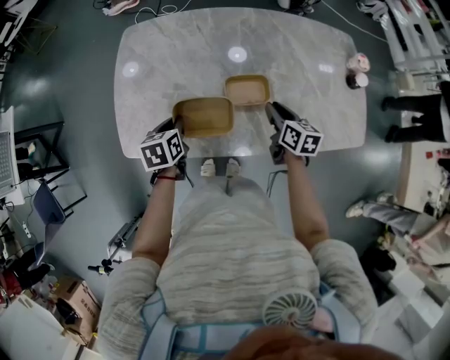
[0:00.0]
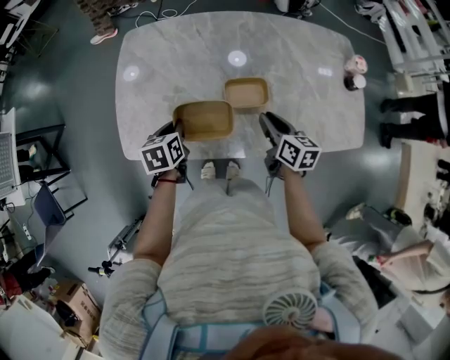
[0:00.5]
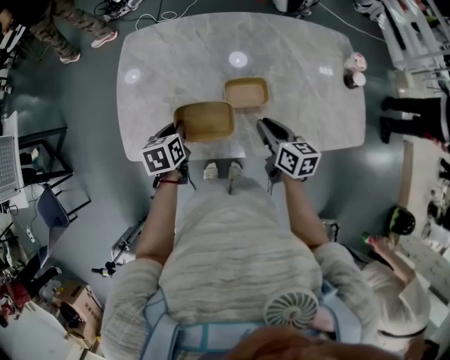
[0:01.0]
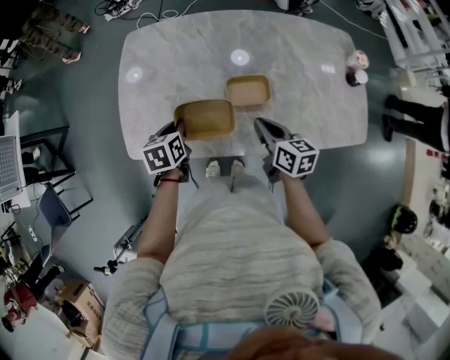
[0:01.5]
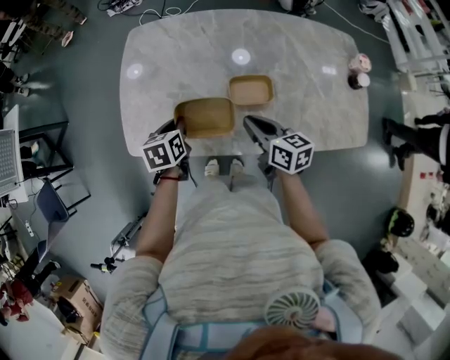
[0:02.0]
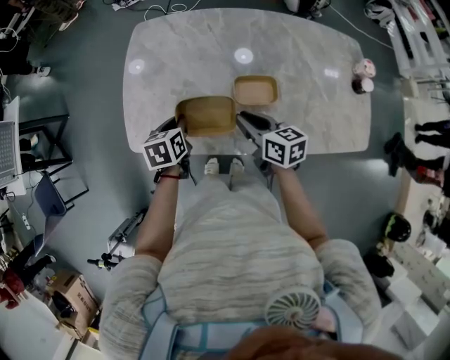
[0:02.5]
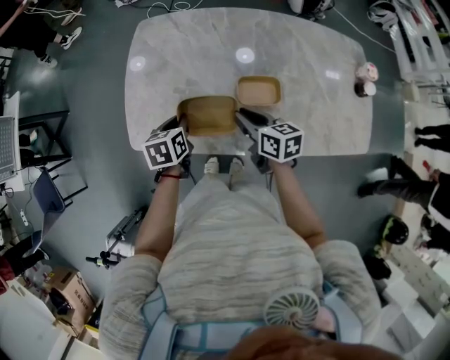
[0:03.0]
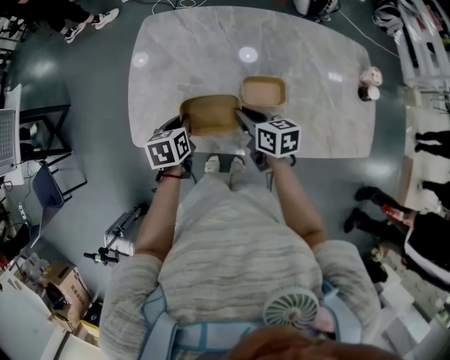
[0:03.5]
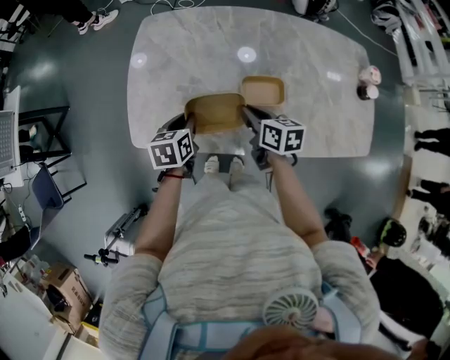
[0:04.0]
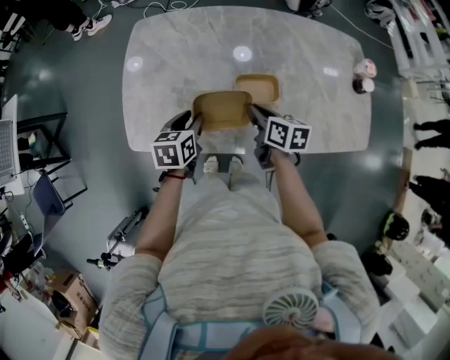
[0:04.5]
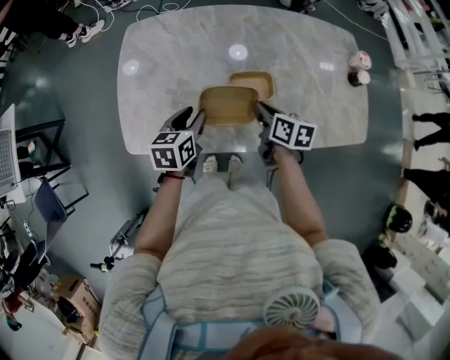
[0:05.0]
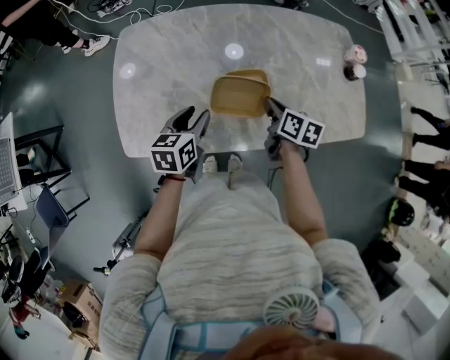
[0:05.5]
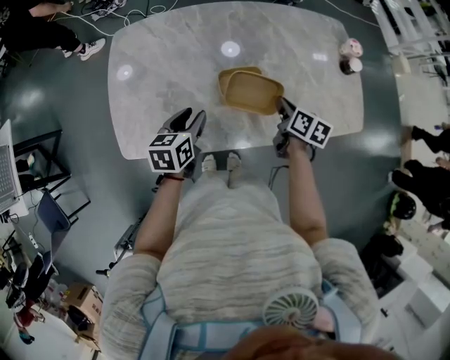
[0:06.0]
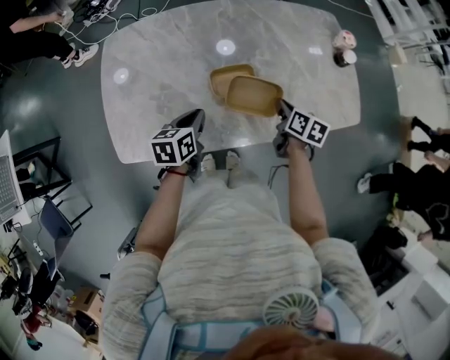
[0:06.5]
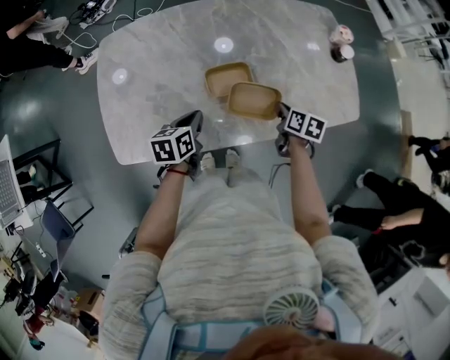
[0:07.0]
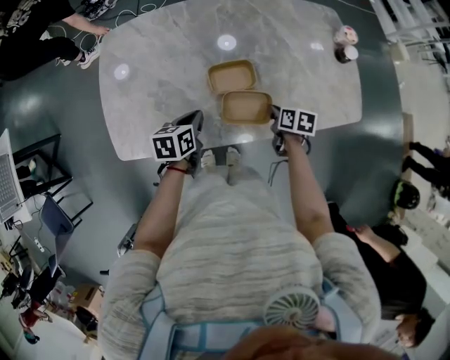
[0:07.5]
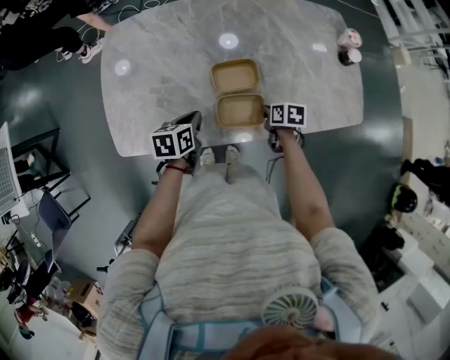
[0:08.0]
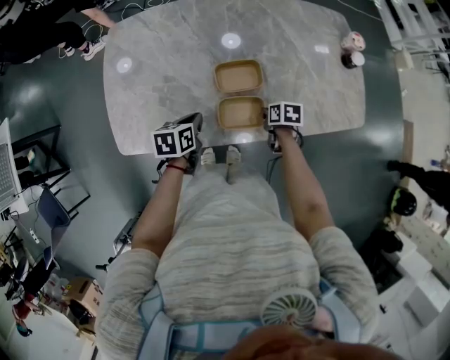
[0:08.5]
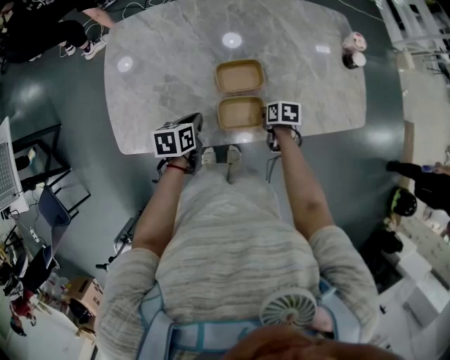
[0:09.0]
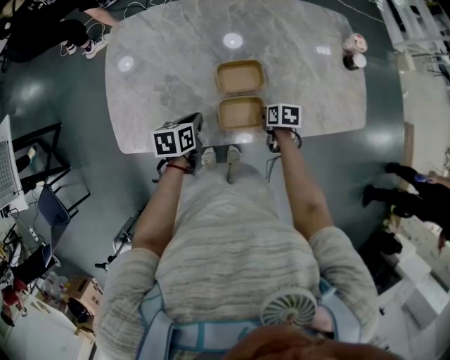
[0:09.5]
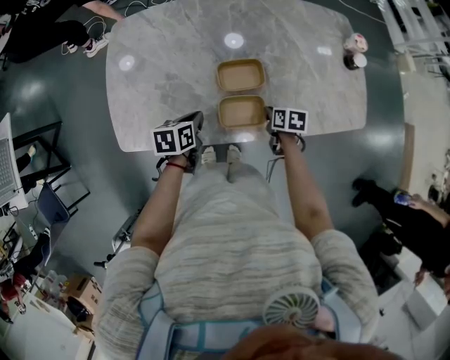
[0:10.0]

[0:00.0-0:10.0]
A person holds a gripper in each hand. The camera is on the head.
0.0 to 2.0 s: The right gripper moves to the left and upward, roughly 10 cm, and swivels approximately 20 degrees.
2.0 to 4.0 s: The right gripper changes place by some 5 cm.
4.0 to 6.0 s: The left gripper travels to the right by roughly 10 cm, and opens its fingers. The right gripper is displaced to the right by some 20 cm, and changes its angle by approximately 30 degrees.
6.0 to 8.0 s: The right gripper goes approximately 15 cm downward, and turns by some 30 degrees. The left gripper goes roughly 5 cm downward, and closes.
8.0 to 10.0 s: The grippers make only small movements.

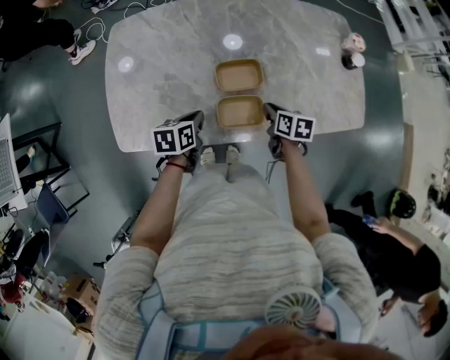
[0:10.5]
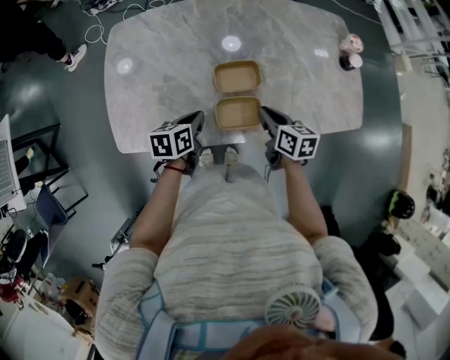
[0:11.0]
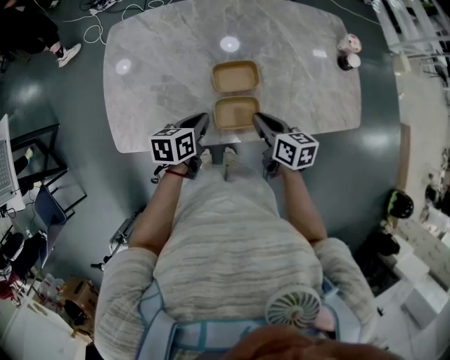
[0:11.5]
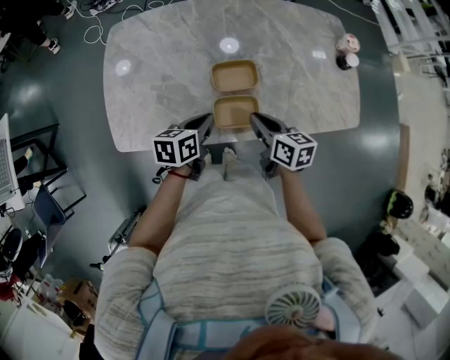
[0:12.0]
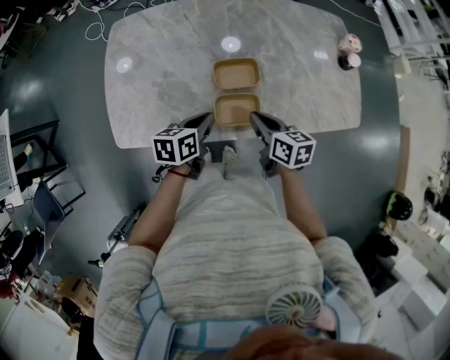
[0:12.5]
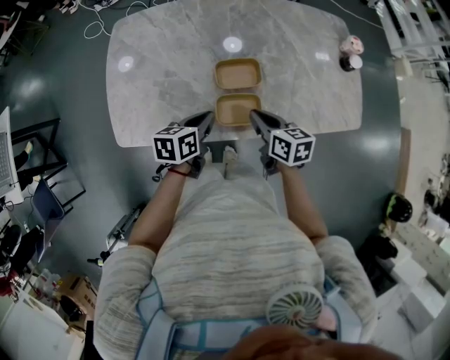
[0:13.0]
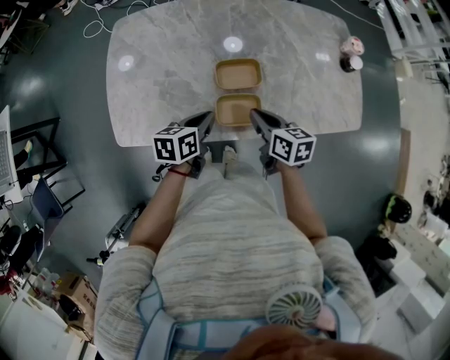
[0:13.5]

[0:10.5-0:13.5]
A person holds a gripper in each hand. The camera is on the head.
10.5 to 12.0 s: The left gripper heads upward, covering about 5 cm. Meanwhile the right gripper travels upward by approximately 10 cm.
12.0 to 13.5 s: Both grippers stay put.

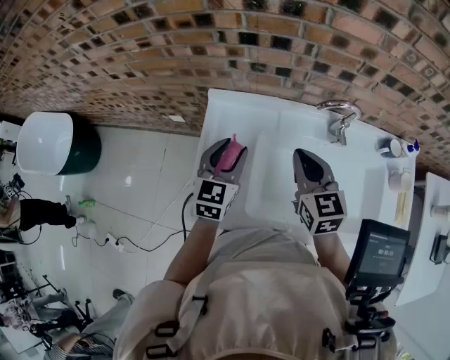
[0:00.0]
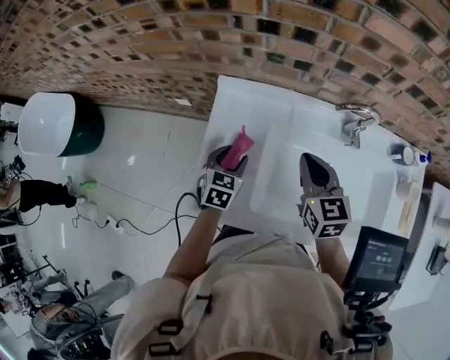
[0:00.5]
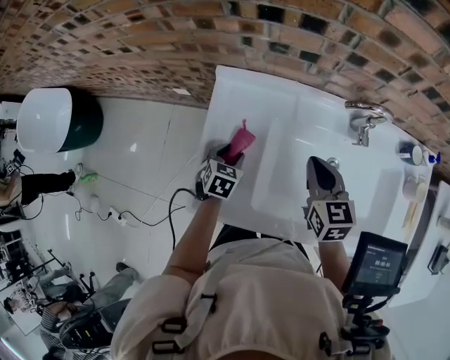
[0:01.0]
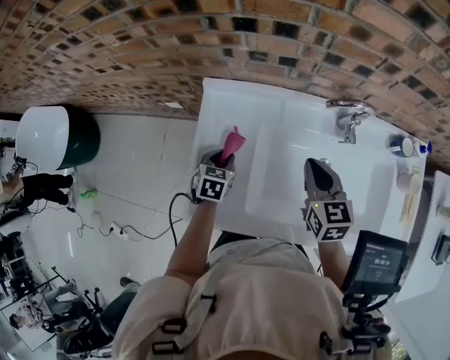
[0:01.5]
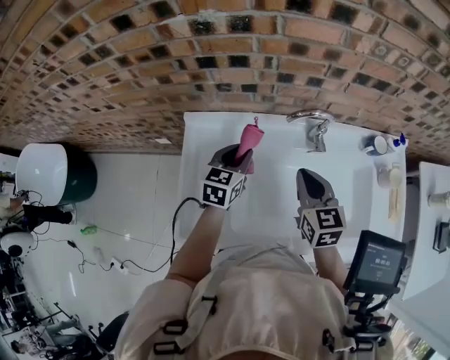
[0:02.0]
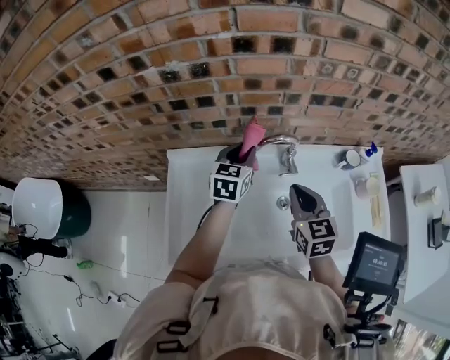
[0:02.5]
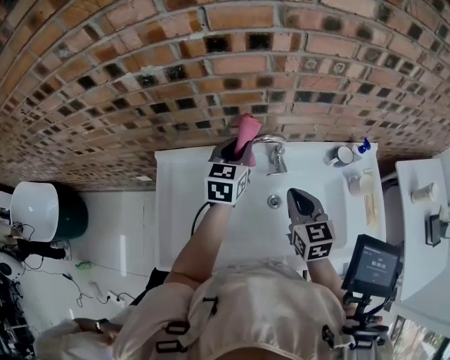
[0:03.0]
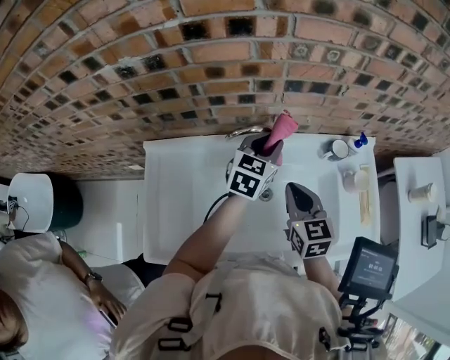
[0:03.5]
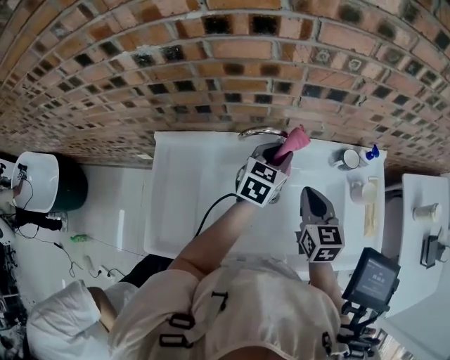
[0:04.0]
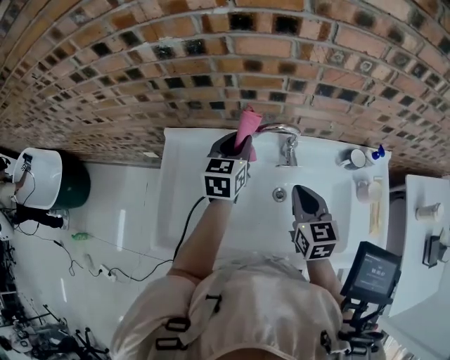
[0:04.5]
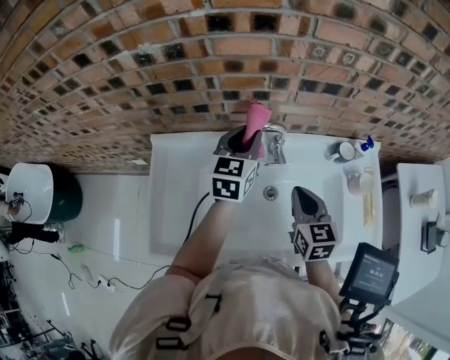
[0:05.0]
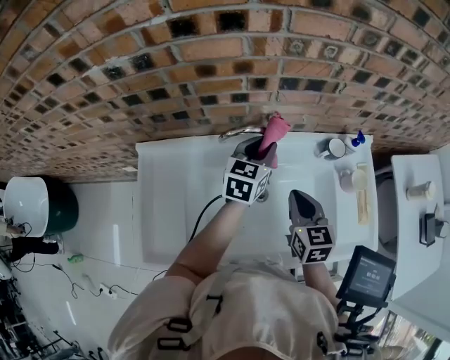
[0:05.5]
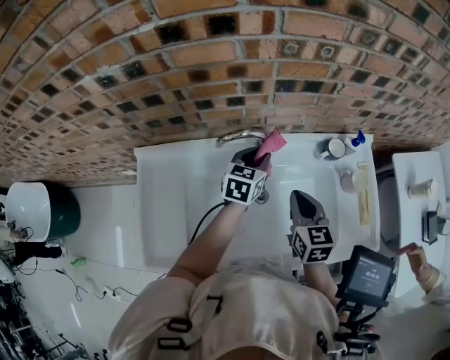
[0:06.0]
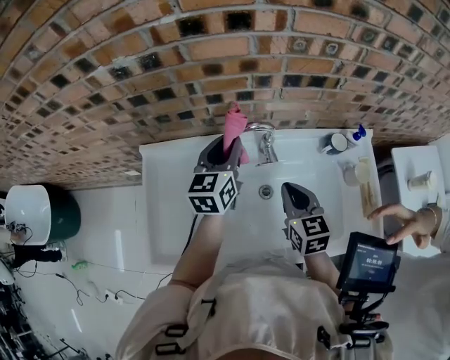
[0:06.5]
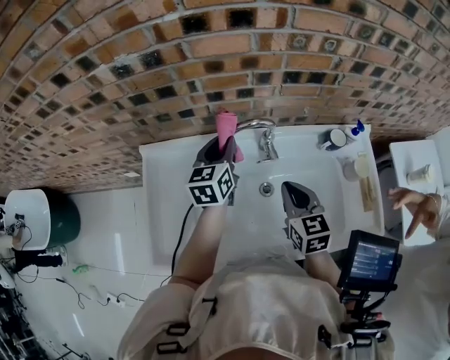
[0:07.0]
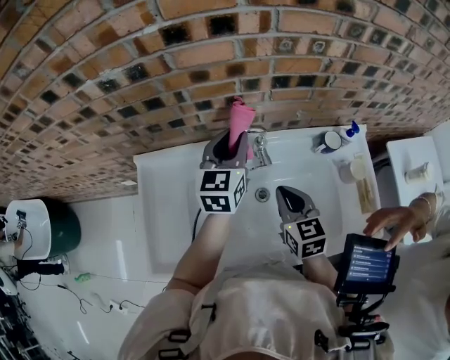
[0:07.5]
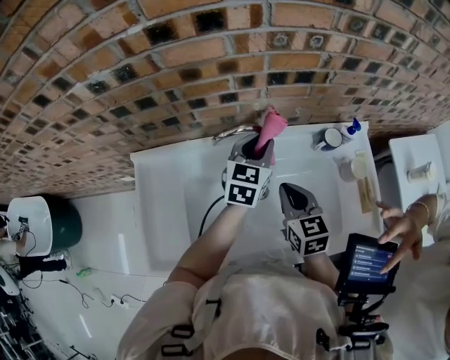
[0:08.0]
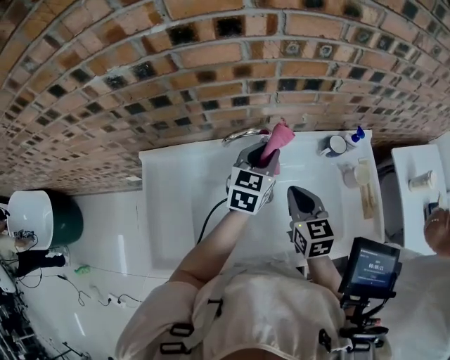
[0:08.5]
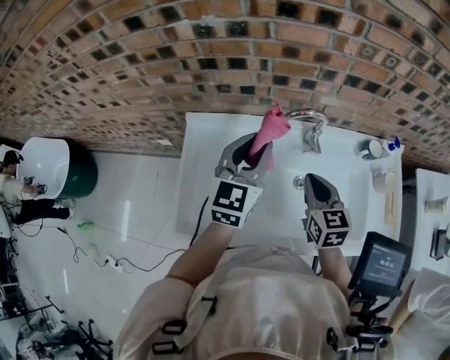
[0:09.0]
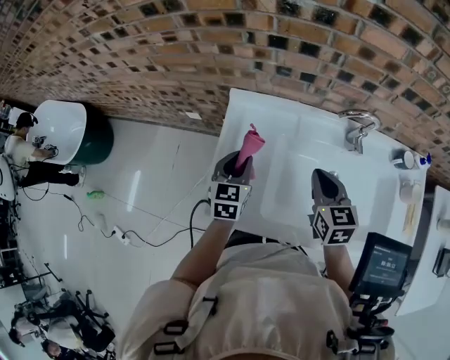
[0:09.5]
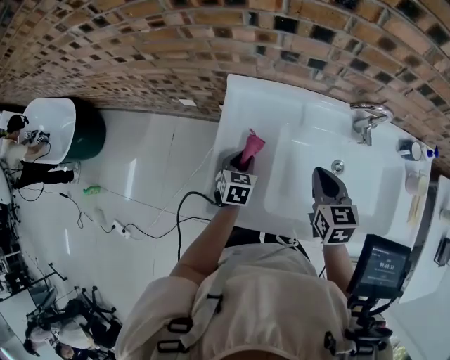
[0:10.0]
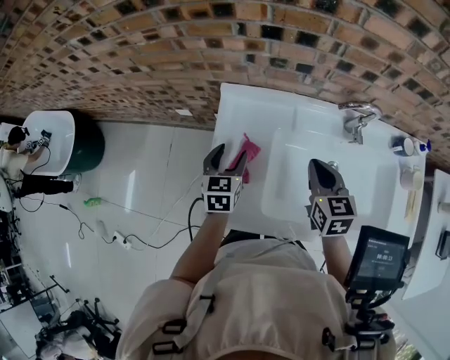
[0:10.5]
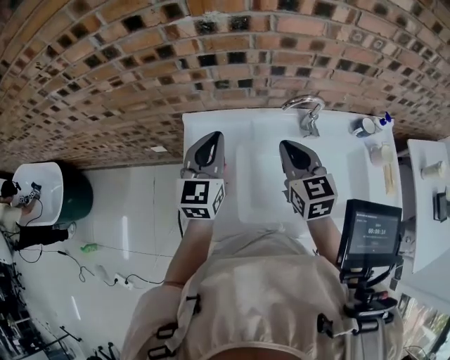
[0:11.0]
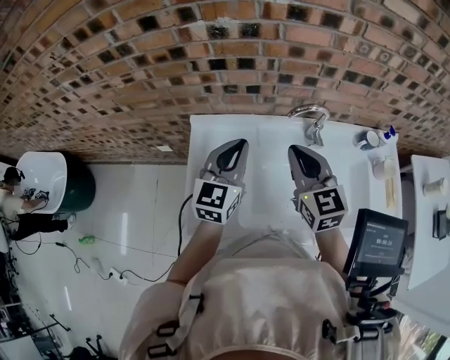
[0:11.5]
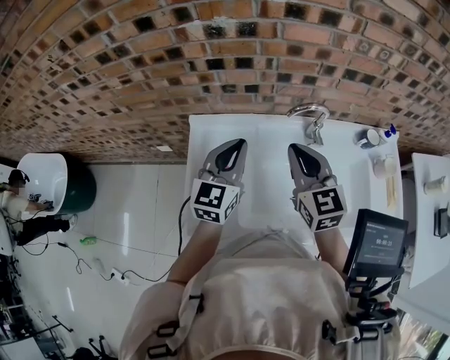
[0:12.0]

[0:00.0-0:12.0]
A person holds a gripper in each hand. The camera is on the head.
0.0 to 2.0 s: The right gripper goes approximately 10 cm to the right. Meanwhile the left gripper travels to the right and forward by roughly 10 cm, and travels downward and back again, some 20 cm each way.
2.0 to 4.0 s: The right gripper is displaced to the right by approximately 15 cm, while the left gripper is displaced to the right by roughly 25 cm.
4.0 to 6.0 s: The left gripper travels downward by some 5 cm, and reaches about 15 cm to the left, then returns.
6.0 to 8.0 s: The left gripper shifts roughly 5 cm upward, and reaches roughly 15 cm to the left, then returns.
8.0 to 10.0 s: The right gripper goes some 25 cm to the left. The left gripper travels to the left, downward and backward by about 50 cm, and rotates some 40 degrees.
10.0 to 12.0 s: The right gripper goes roughly 15 cm upward, and swivels roughly 30 degrees. Meanwhile the left gripper heads upward and to the right, covering approximately 30 cm, angles its fingers upward, by some 40 degrees, and closes its fingers.

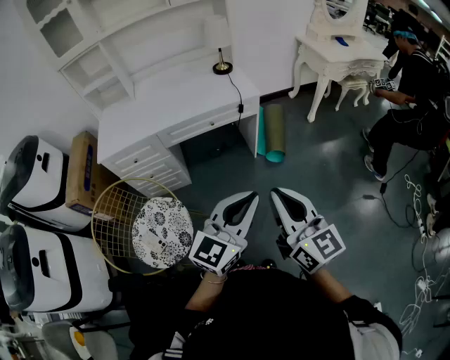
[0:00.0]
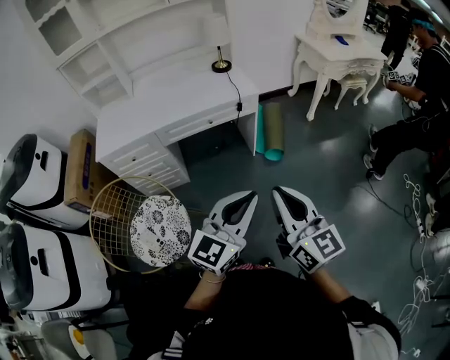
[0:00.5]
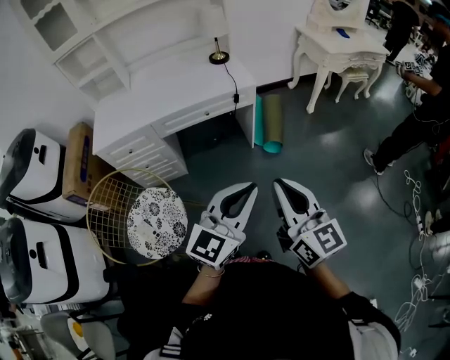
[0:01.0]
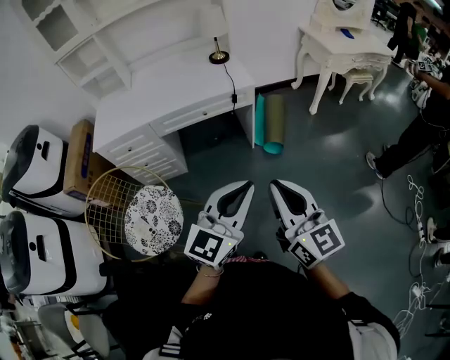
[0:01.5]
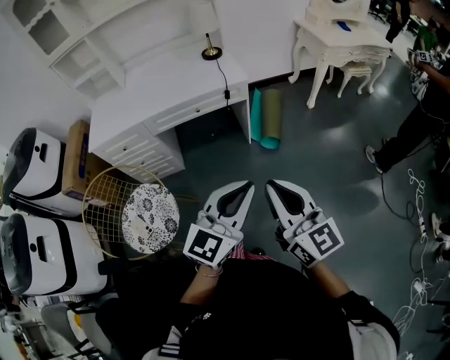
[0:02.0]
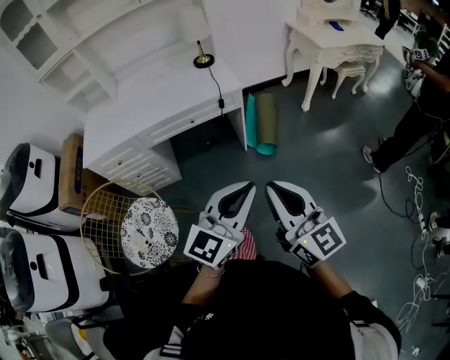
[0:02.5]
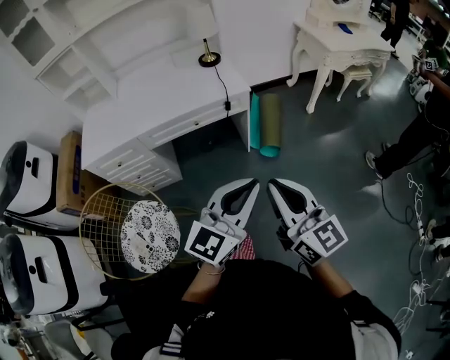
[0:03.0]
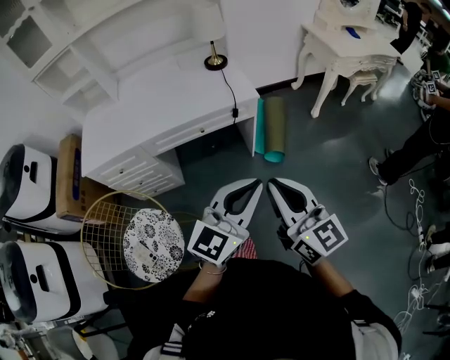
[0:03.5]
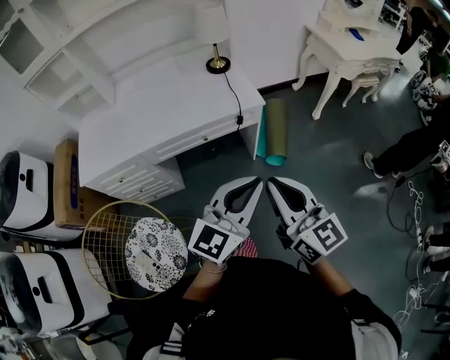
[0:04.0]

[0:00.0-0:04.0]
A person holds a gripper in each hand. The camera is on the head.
0.0 to 2.0 s: The two grippers go approximately 10 cm to the right.
2.0 to 4.0 s: The right gripper travels forward and to the left by about 25 cm, while the left gripper shifts approximately 20 cm forward.
